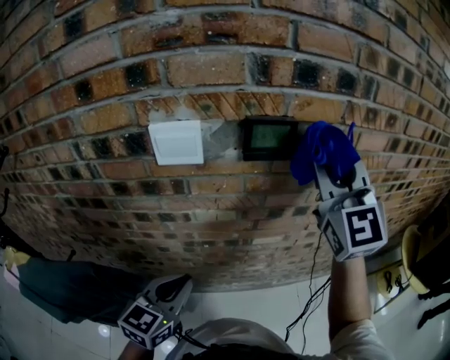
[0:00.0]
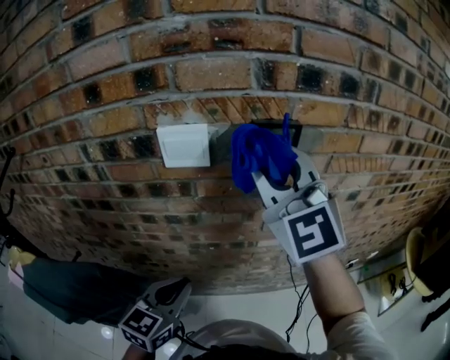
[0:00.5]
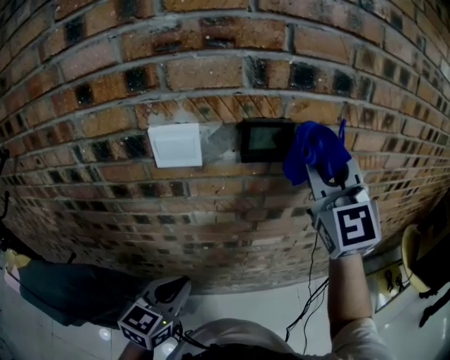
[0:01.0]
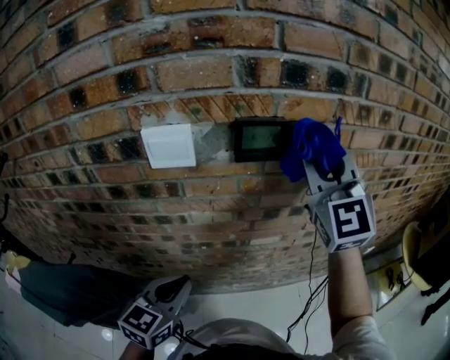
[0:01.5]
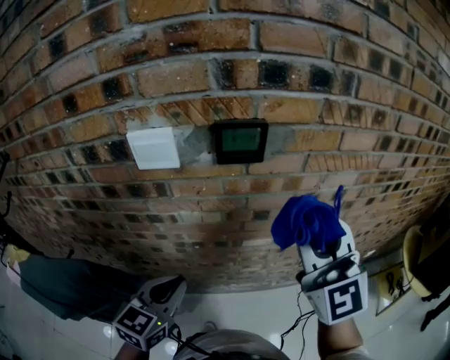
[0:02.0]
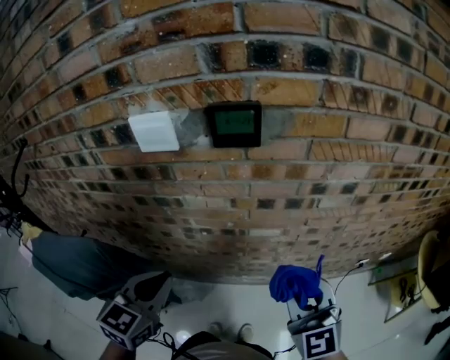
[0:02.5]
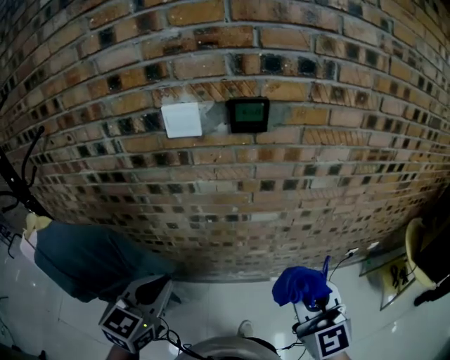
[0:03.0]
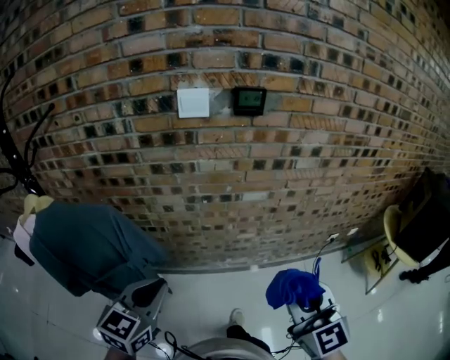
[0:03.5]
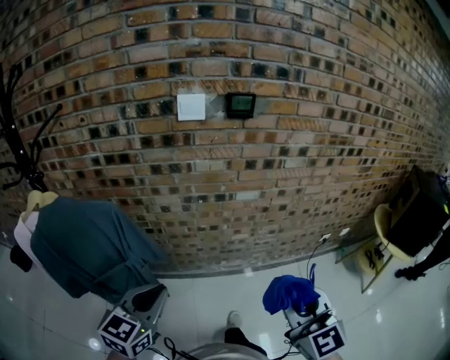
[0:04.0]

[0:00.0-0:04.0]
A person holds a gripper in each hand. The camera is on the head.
0:00.0 to 0:02.0: The right gripper travels backward and downward by about 10 cm, and travels to the left and back again, approximately 15 cm each way.
0:02.0 to 0:04.0: The two grippers go roughly 35 cm backward.

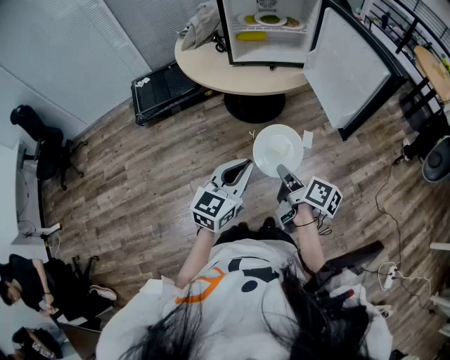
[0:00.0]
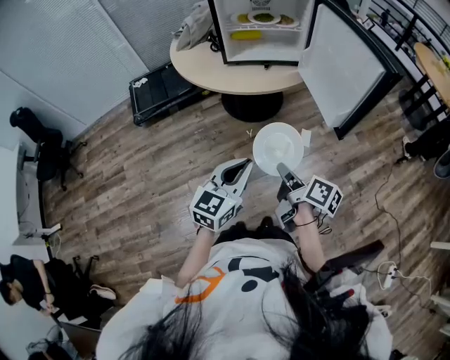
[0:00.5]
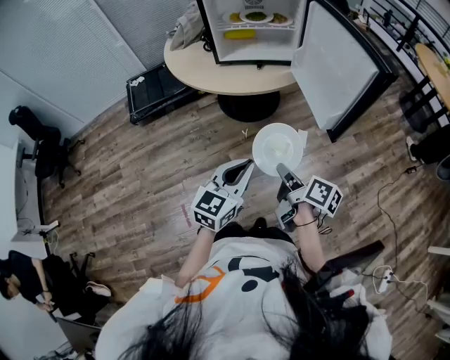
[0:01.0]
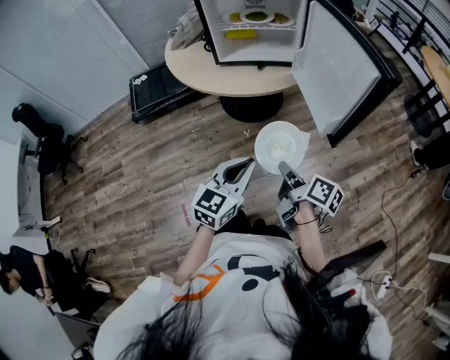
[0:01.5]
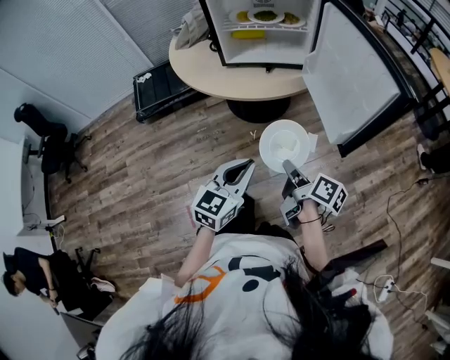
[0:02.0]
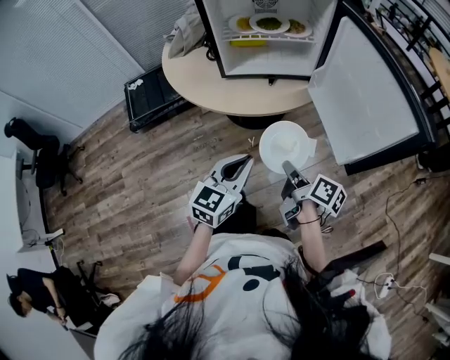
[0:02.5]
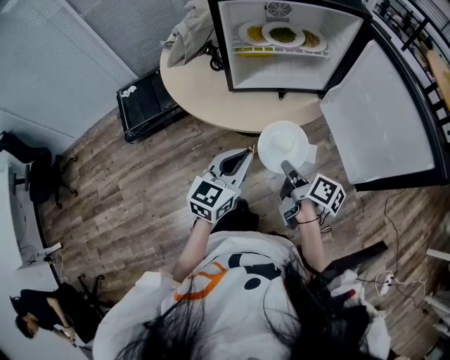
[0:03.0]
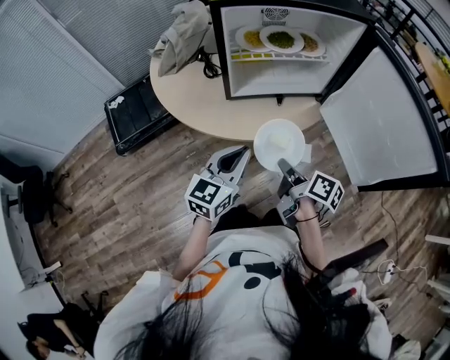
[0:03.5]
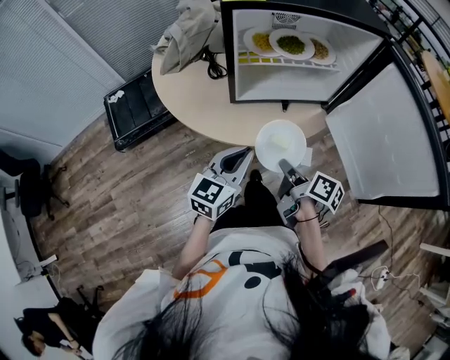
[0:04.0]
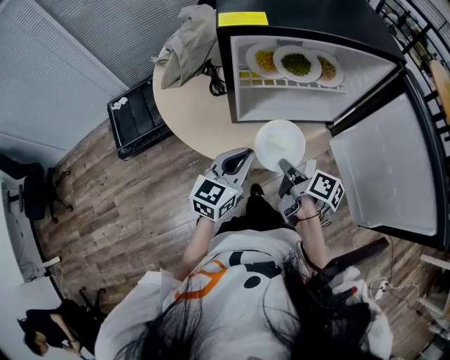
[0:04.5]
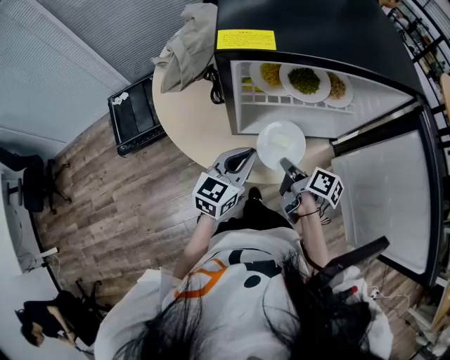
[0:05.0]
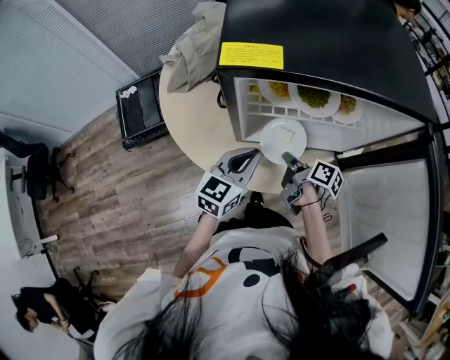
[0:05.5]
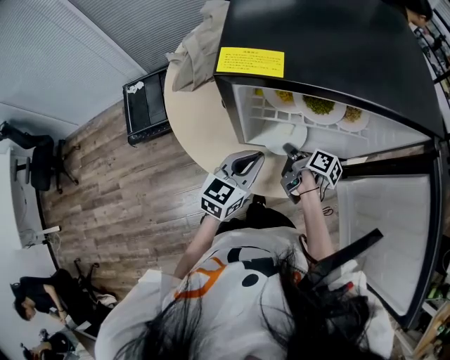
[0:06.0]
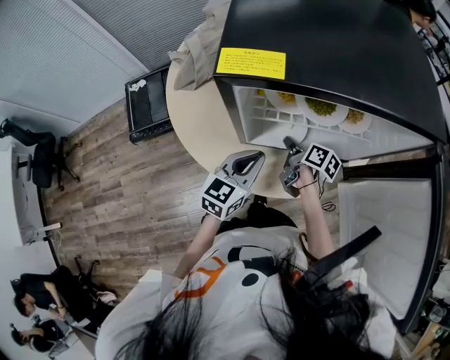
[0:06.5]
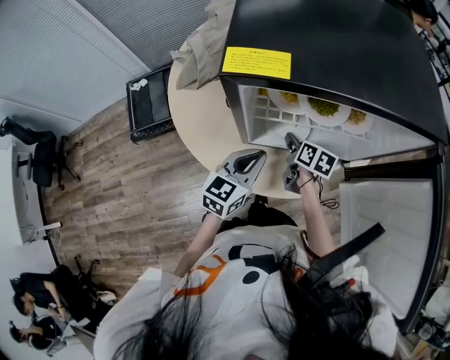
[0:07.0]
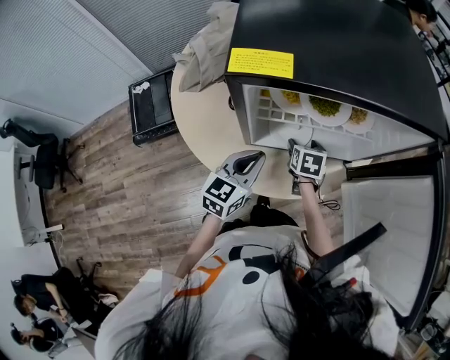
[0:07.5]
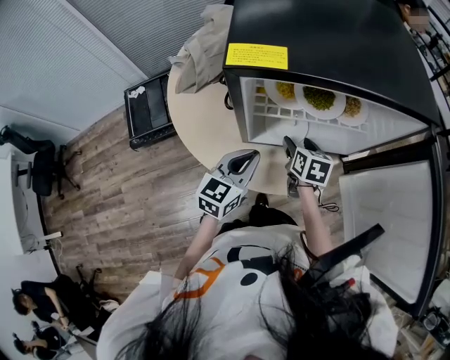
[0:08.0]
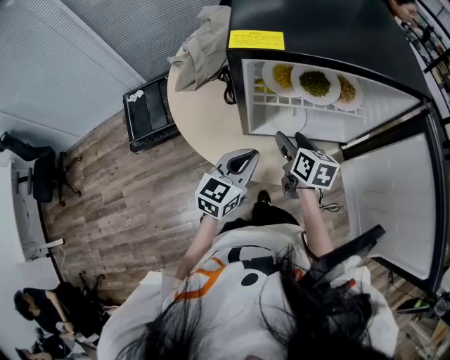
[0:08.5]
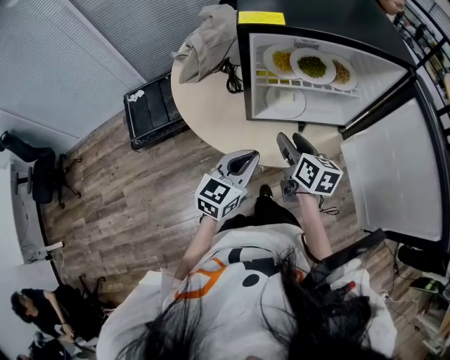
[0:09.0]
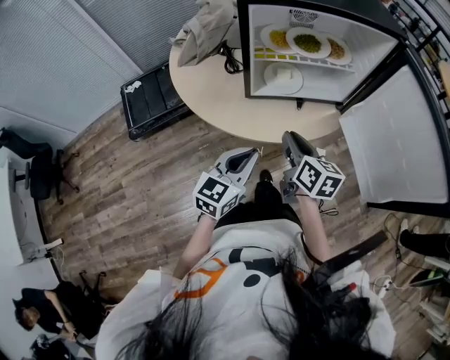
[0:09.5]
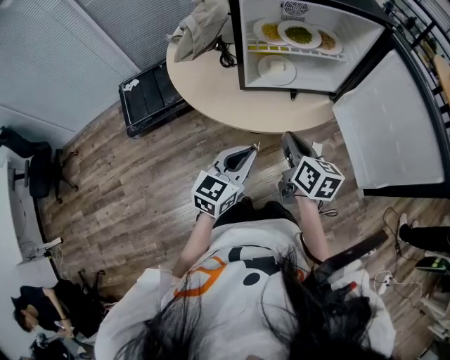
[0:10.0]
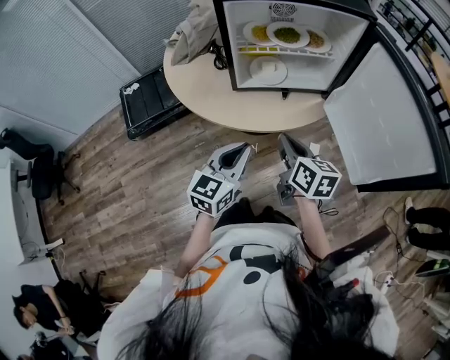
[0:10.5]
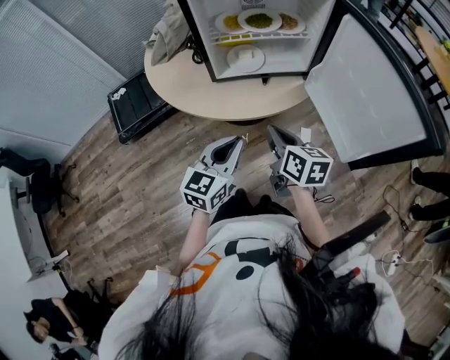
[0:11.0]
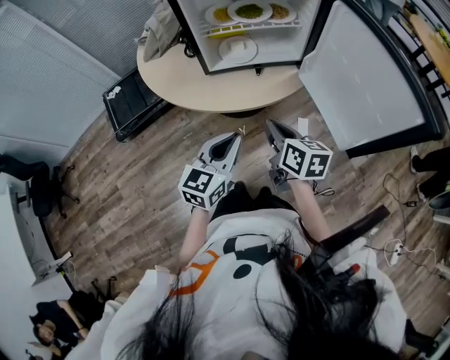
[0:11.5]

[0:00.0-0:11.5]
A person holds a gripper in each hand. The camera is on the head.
0:00.0 to 0:02.0: The grippers both shift forward and to the right by roughly 10 cm.
0:02.0 to 0:04.0: The grippers both shift forward and to the left by roughly 25 cm.
0:04.0 to 0:06.0: The two grippers go about 20 cm forward.
0:06.0 to 0:07.5: The right gripper rotates around the line of its fingers by roughly 50 degrees, counterclockwise from behind, and opens.
0:07.5 to 0:09.5: The right gripper goes about 25 cm backward and upward, swivels roughly 40 degrees, and closes up, while the left gripper heads backward, covering some 20 cm.
0:09.5 to 0:11.5: The right gripper moves backward and to the right, some 10 cm. The left gripper is displaced to the right and backward by some 10 cm.

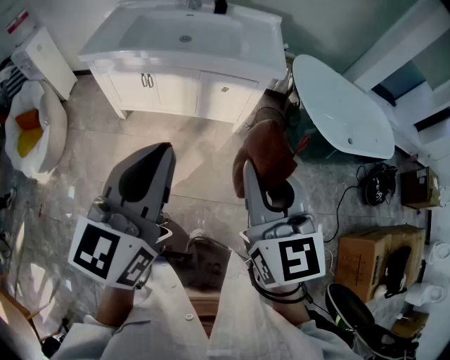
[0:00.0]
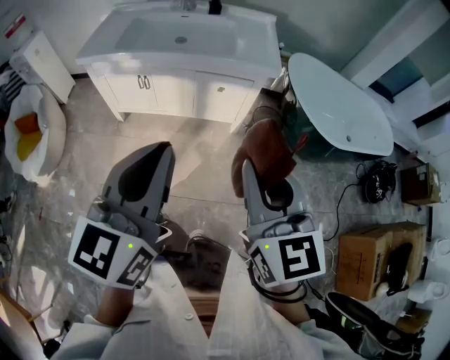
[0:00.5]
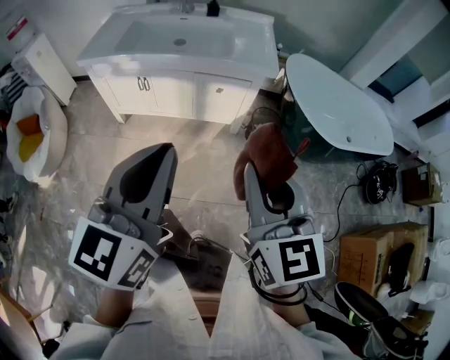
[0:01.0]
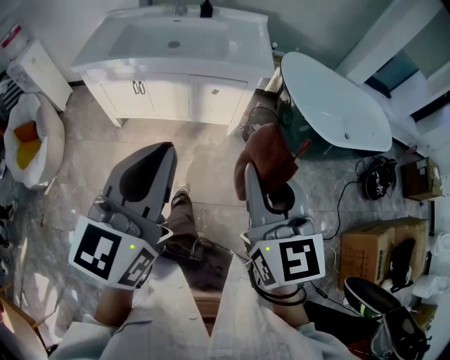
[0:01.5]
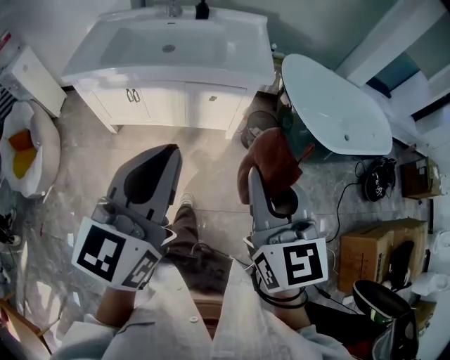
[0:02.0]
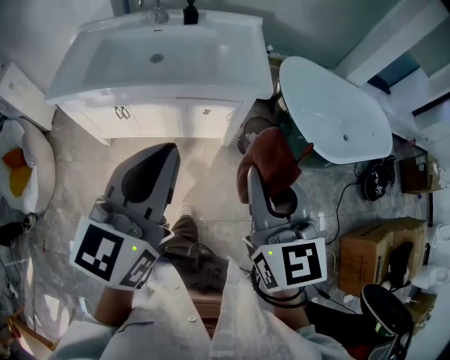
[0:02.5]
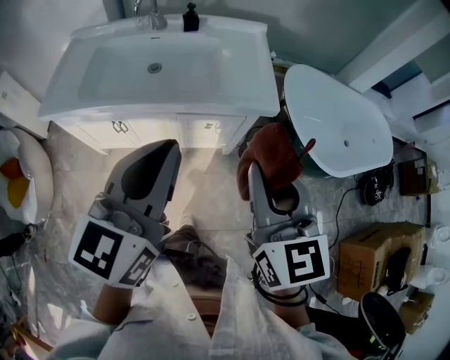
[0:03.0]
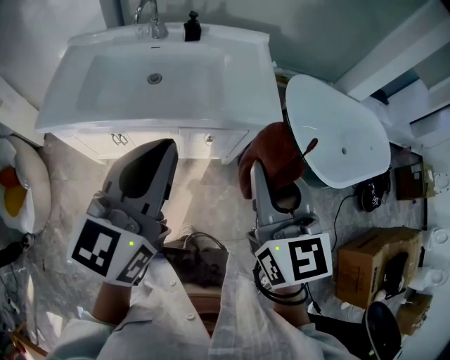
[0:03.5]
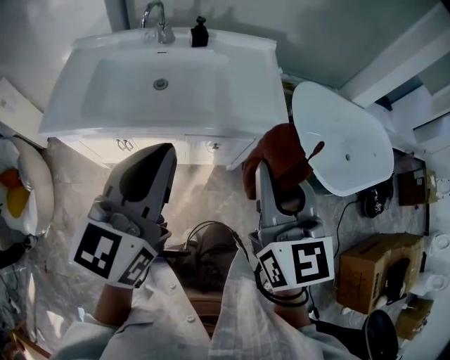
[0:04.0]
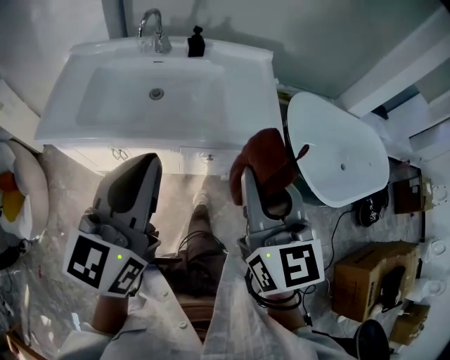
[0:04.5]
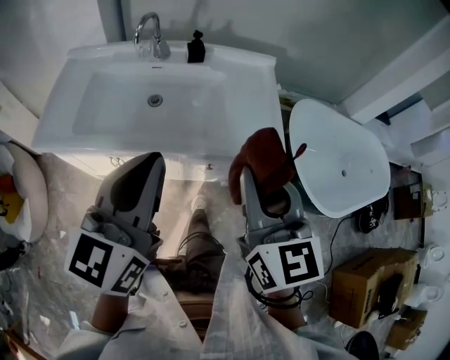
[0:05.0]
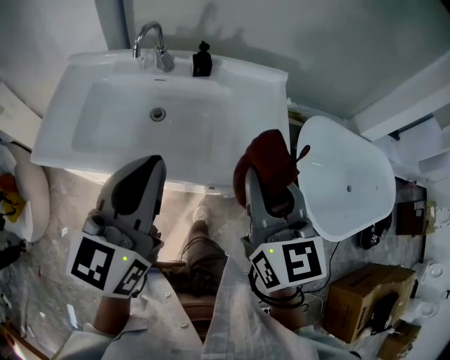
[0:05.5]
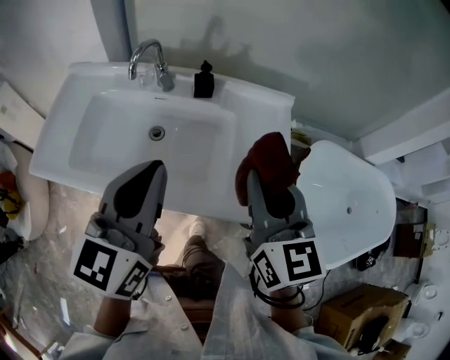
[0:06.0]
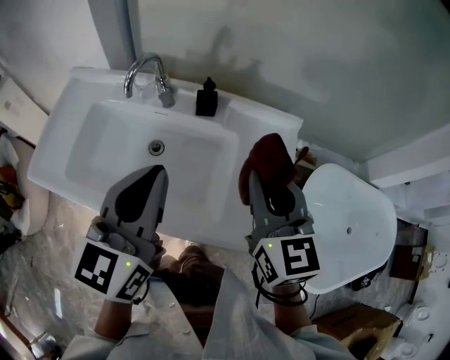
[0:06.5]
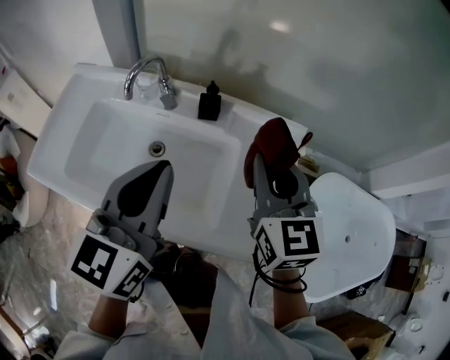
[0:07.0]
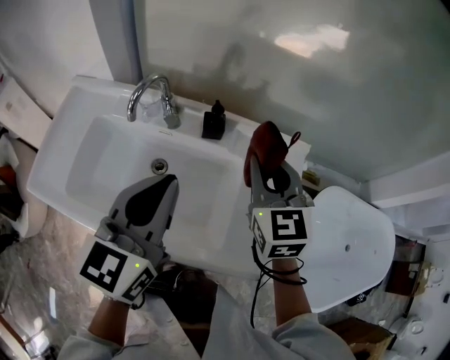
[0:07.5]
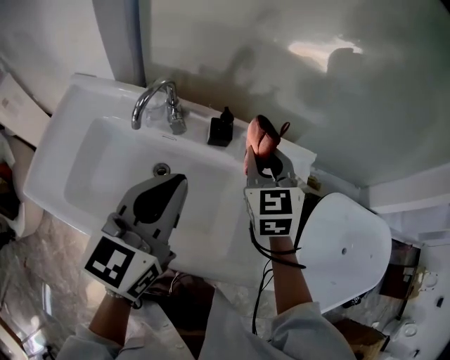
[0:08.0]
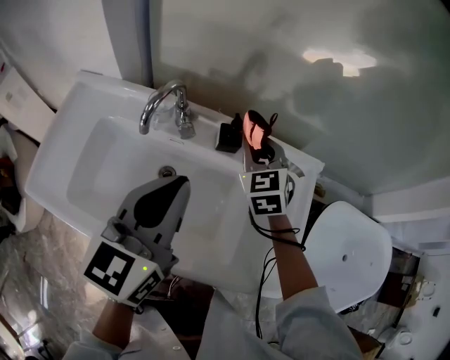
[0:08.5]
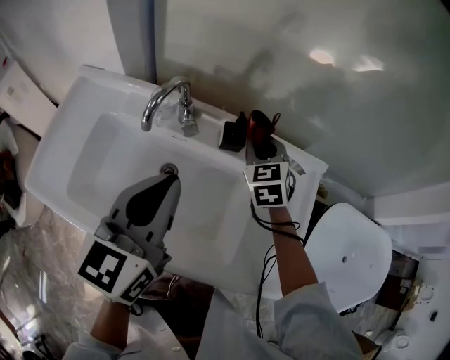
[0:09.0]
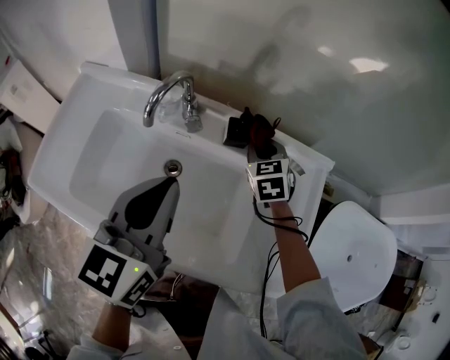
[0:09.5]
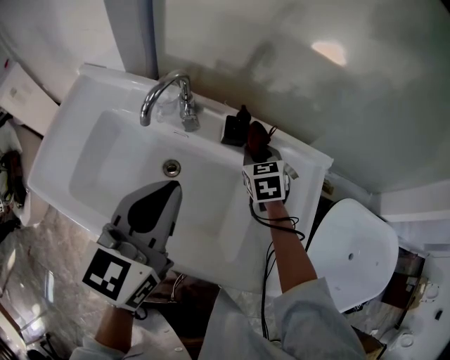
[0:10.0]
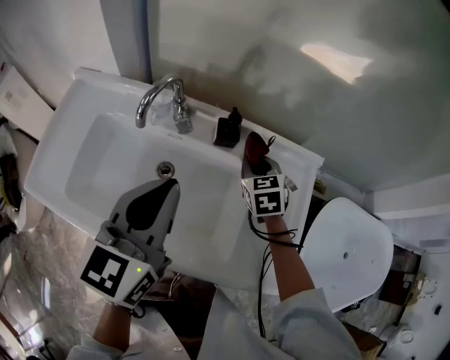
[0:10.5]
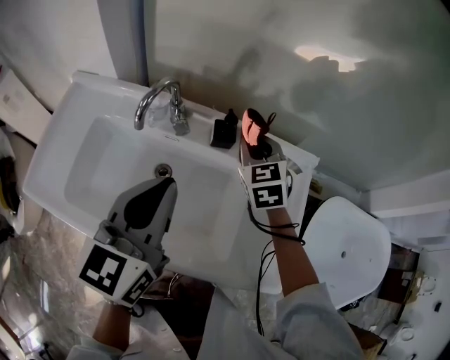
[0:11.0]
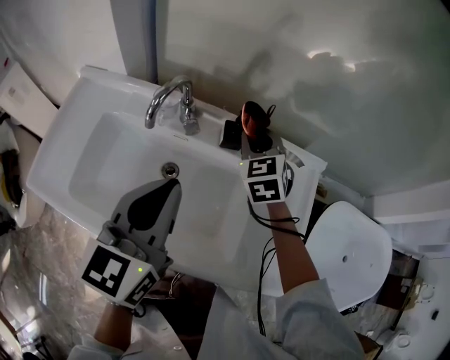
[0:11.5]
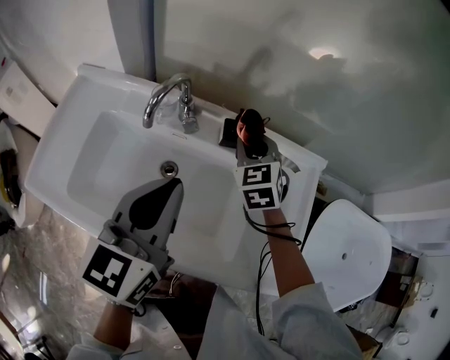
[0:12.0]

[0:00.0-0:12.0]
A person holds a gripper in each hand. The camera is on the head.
0:00.0 to 0:02.0: Both grippers travel together forward, some 5 cm.
0:02.0 to 0:04.0: Both grippers travel together forward, about 30 cm.
0:04.0 to 0:06.0: Both grippers travel together forward, roughly 25 cm.
0:06.0 to 0:08.0: The left gripper is displaced forward by approximately 15 cm; the right gripper moves forward, about 30 cm, and turns by some 20 degrees.
0:08.0 to 0:10.0: The right gripper heads downward, covering approximately 15 cm.
0:10.0 to 0:12.0: The right gripper is displaced upward by about 10 cm.
